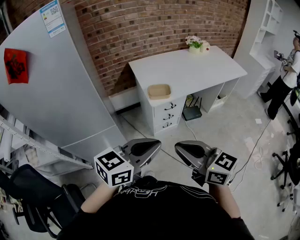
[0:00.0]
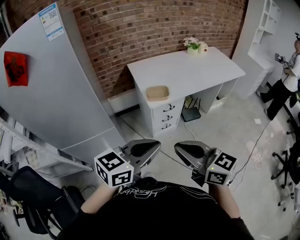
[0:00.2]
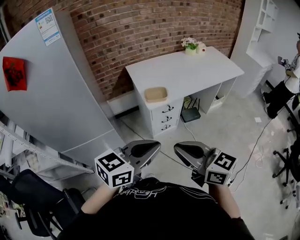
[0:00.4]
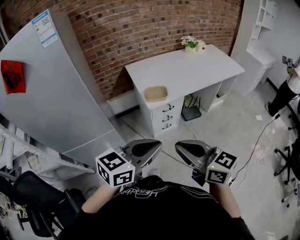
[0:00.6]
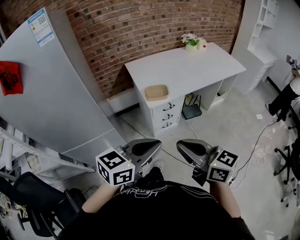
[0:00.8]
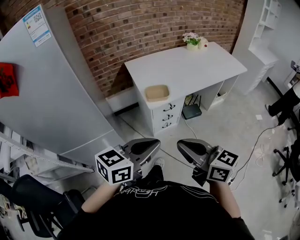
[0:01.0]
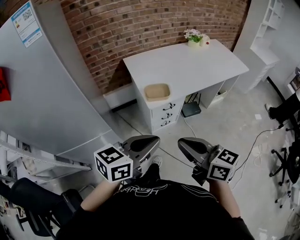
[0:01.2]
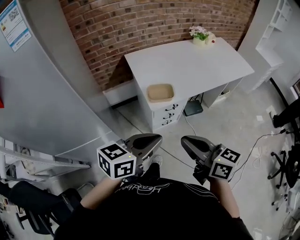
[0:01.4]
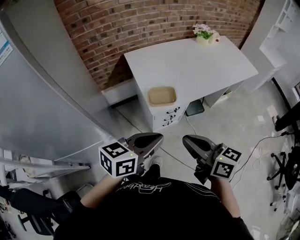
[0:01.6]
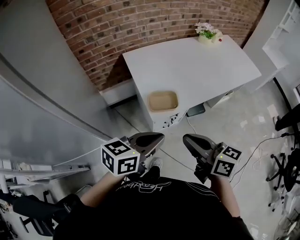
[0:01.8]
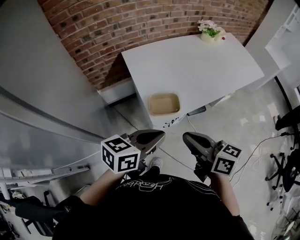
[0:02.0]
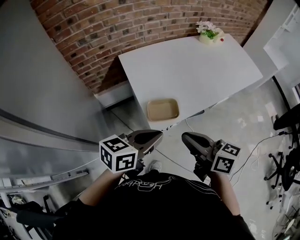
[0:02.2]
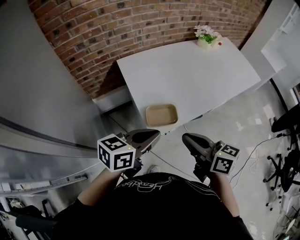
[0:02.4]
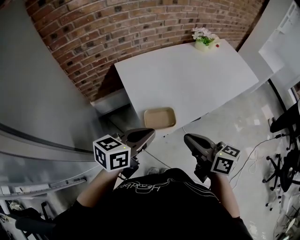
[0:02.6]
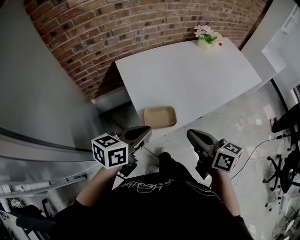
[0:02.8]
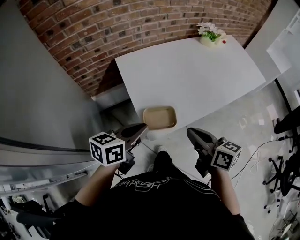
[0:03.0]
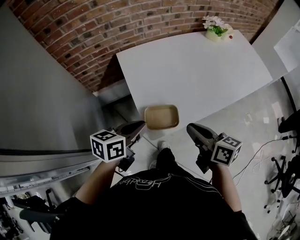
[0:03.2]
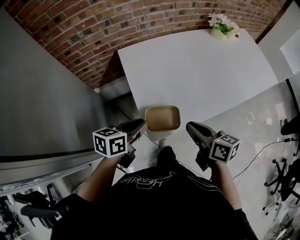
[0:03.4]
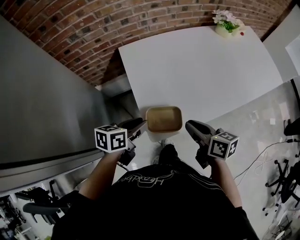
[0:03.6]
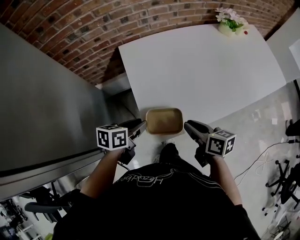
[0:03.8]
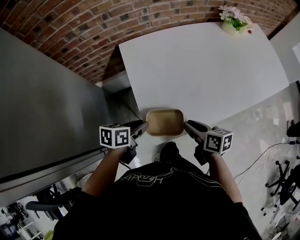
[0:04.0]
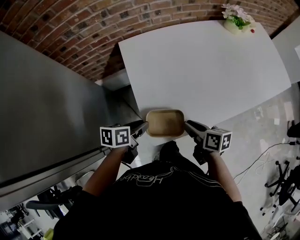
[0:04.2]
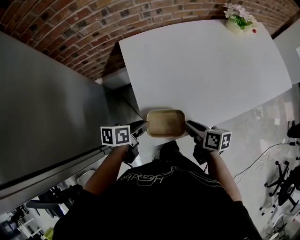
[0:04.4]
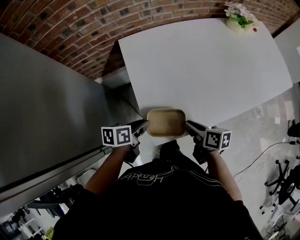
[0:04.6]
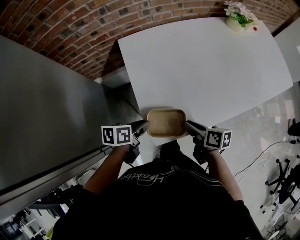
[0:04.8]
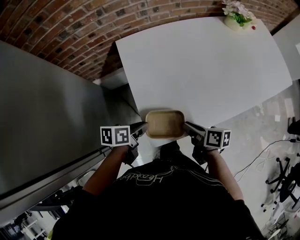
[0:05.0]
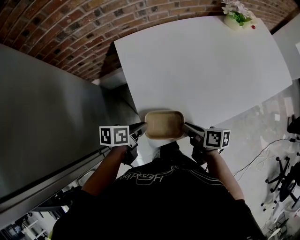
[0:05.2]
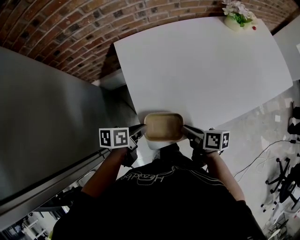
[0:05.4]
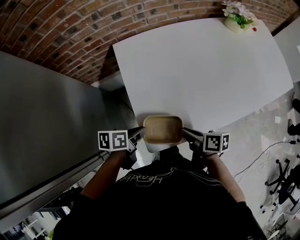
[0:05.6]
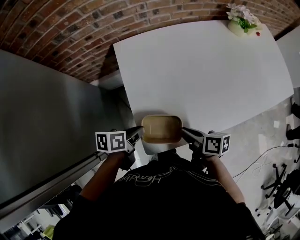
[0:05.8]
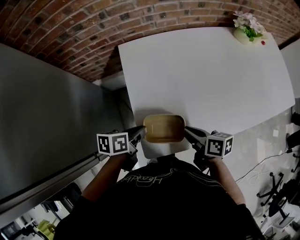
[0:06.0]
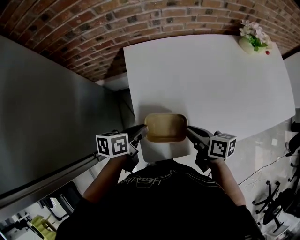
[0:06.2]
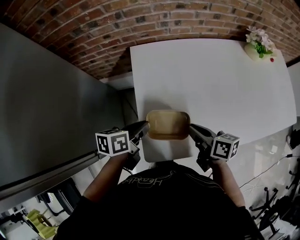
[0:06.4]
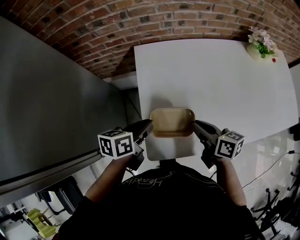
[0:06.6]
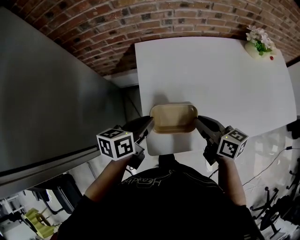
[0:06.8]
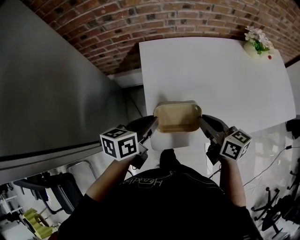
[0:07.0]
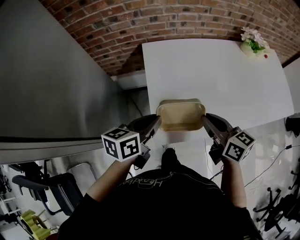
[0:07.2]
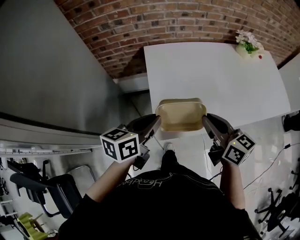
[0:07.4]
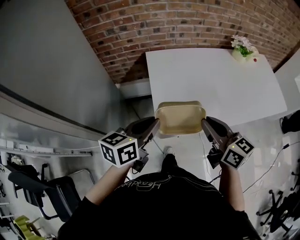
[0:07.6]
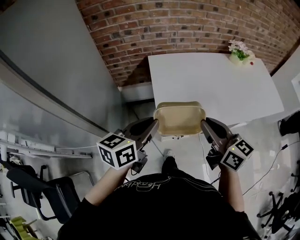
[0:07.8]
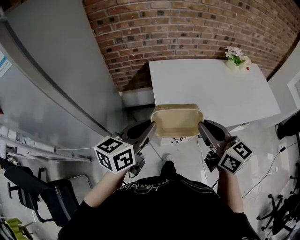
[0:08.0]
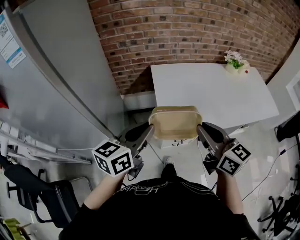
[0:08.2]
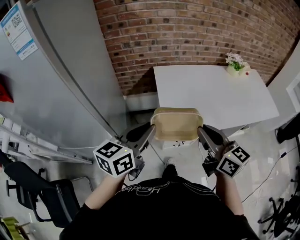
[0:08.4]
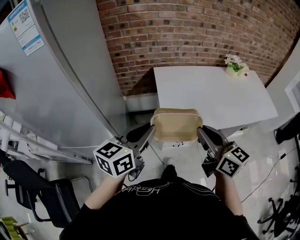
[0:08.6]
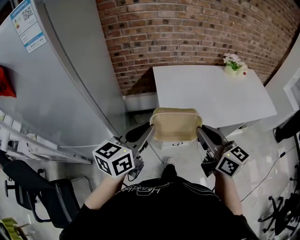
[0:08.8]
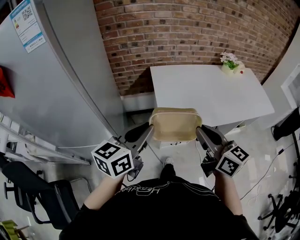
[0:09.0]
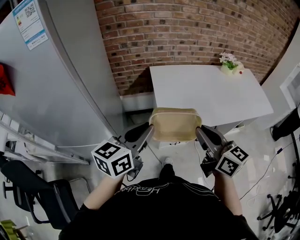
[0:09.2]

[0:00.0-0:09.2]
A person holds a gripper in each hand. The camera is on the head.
0.0 to 1.6 s: Both grippers move forward, roughly 20 cm.
1.6 to 3.0 s: The grippers both shift forward by about 20 cm.
3.0 to 4.6 s: The right gripper moves downward and forward, roughly 20 cm, and rotates approximately 30 degrees. Meanwhile the left gripper is displaced downward by about 20 cm, turns by approximately 30 degrees, and opens its fingers.
4.6 to 6.2 s: Both grippers travel together forward, approximately 5 cm.
6.2 to 7.6 s: The two grippers go some 20 cm upward and backward. The left gripper changes its angle by roughly 30 degrees; the right gripper turns by roughly 40 degrees.
7.6 to 9.2 s: Both grippers move backward, upward and to the left, roughly 15 cm.

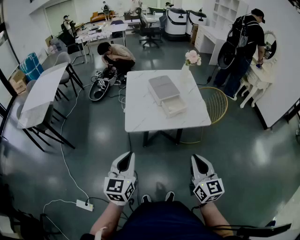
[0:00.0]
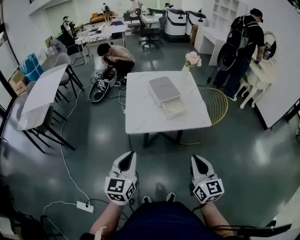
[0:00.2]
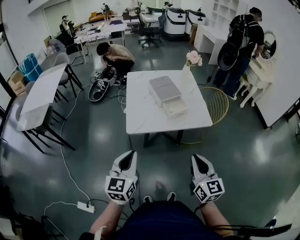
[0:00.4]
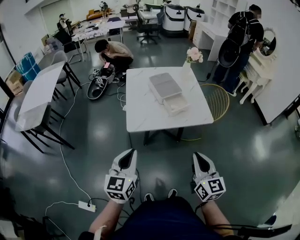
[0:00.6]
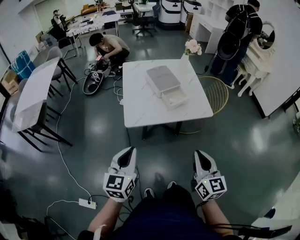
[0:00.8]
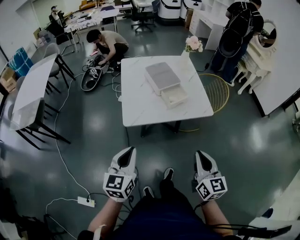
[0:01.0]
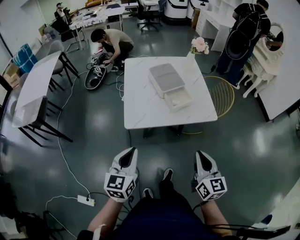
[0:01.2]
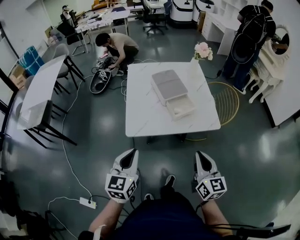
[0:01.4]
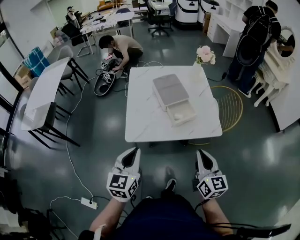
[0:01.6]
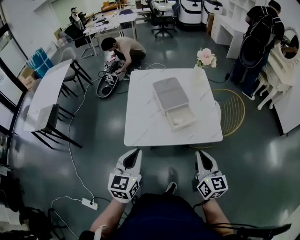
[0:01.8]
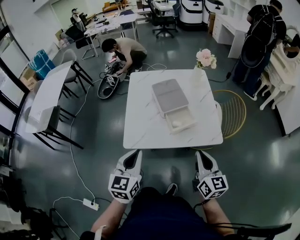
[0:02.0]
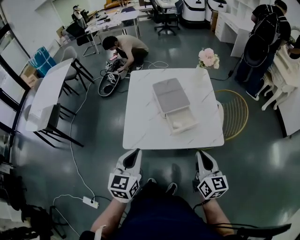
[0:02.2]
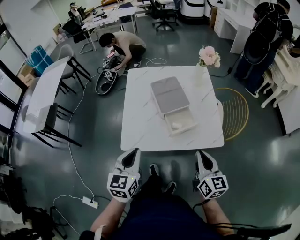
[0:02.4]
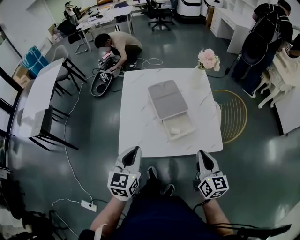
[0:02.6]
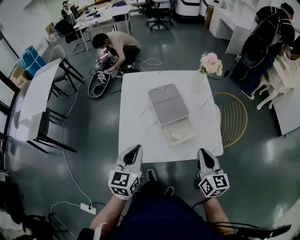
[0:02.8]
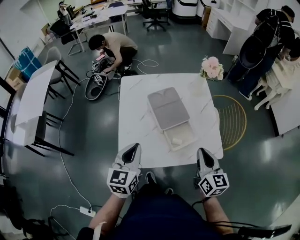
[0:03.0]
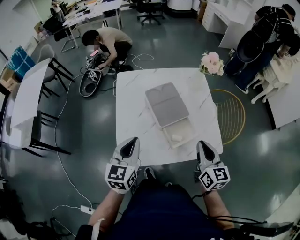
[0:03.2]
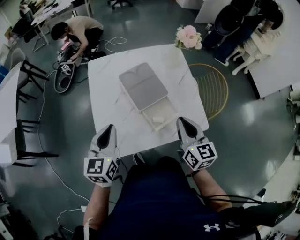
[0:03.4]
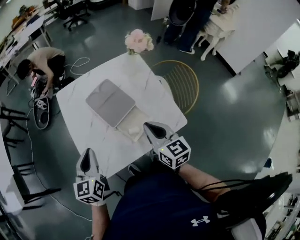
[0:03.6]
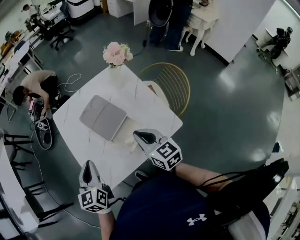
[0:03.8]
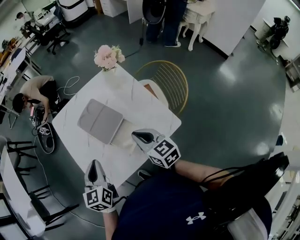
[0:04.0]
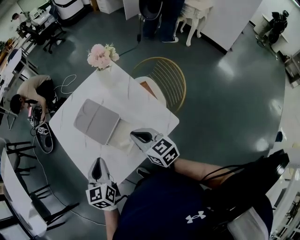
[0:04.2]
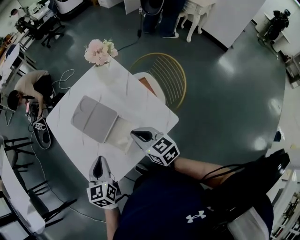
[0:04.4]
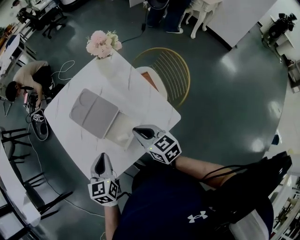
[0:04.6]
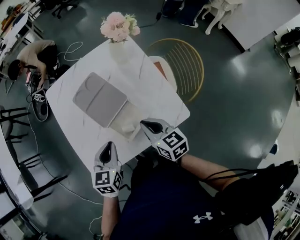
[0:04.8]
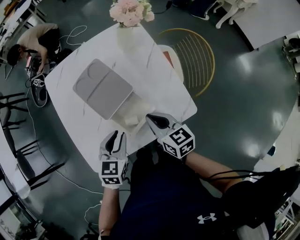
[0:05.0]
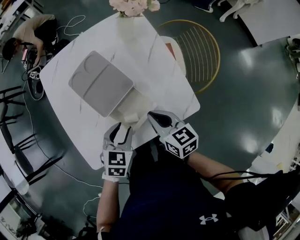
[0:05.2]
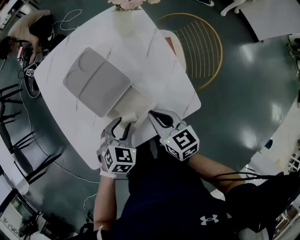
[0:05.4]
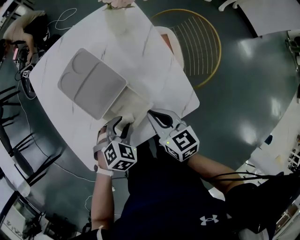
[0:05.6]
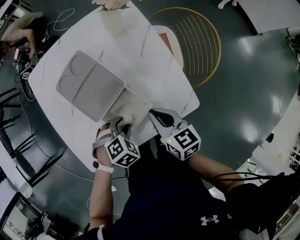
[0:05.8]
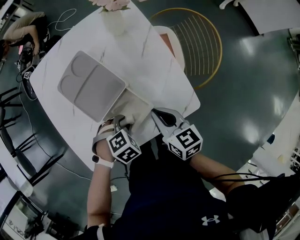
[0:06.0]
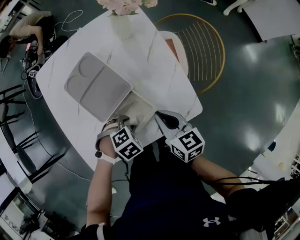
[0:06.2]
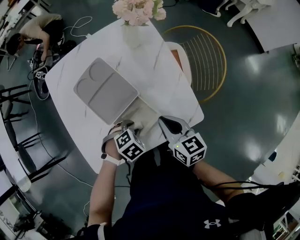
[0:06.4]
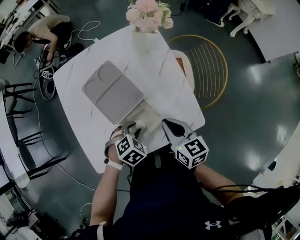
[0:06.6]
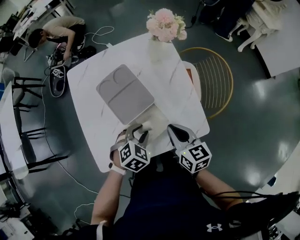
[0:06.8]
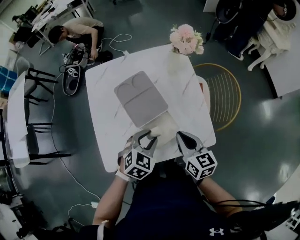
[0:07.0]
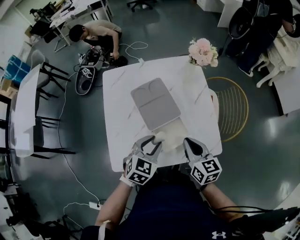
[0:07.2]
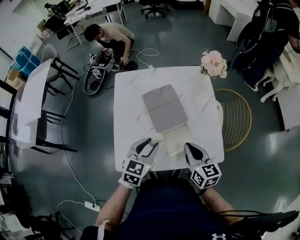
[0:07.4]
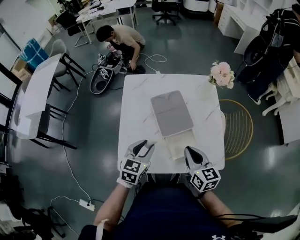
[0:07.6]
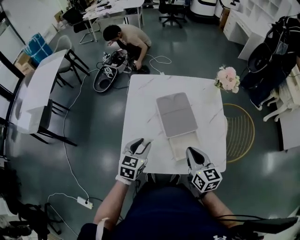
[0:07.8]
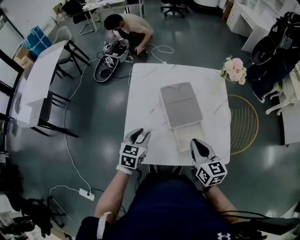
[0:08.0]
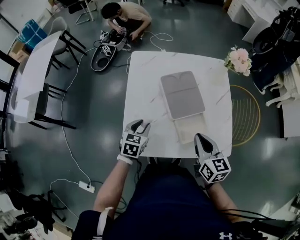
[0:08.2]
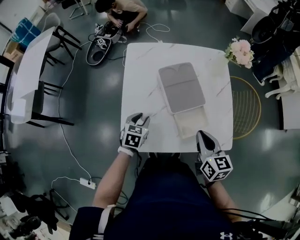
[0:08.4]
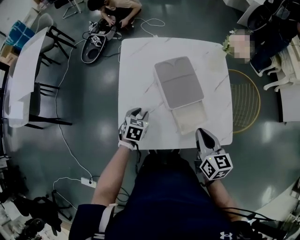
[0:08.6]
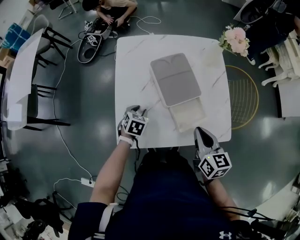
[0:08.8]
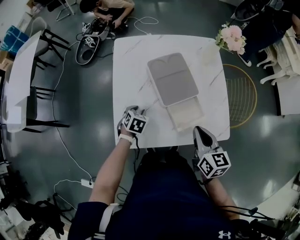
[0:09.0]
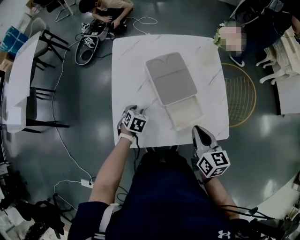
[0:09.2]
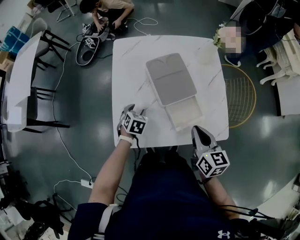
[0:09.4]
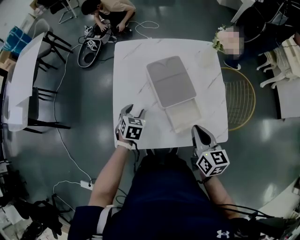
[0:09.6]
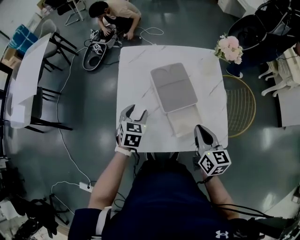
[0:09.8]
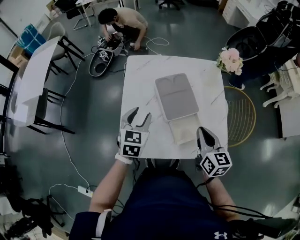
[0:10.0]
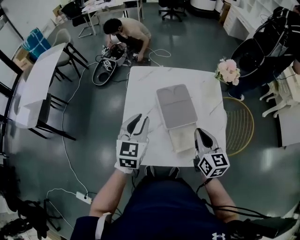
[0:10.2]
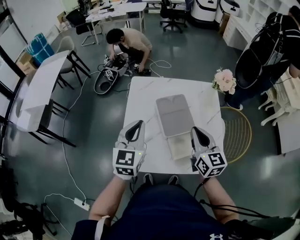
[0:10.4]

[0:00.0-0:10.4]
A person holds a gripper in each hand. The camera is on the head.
0.0 to 1.4 s: Both grippers move forward, about 10 cm.
1.4 to 3.0 s: The two grippers go about 25 cm forward.
3.0 to 4.4 s: The right gripper moves forward and downward, about 10 cm. The left gripper travels to the right, forward and downward by approximately 15 cm.
4.4 to 6.0 s: The left gripper heads downward, covering some 20 cm, tips its fingers downward by roughly 50 degrees, and opens its fingers. Meanwhile the right gripper shifts roughly 10 cm downward.
6.0 to 7.4 s: The left gripper is displaced upward by approximately 20 cm, and points its fingers about 50 degrees further upward, while the right gripper goes approximately 10 cm upward.
7.4 to 9.0 s: The left gripper is displaced downward and to the left by some 25 cm, and tilts its fingers some 30 degrees downward.
9.0 to 10.4 s: The left gripper goes approximately 35 cm upward, tips its fingers upward by approximately 50 degrees, and closes its fingers, while the right gripper travels upward and forward by approximately 15 cm, and changes its angle by about 20 degrees.

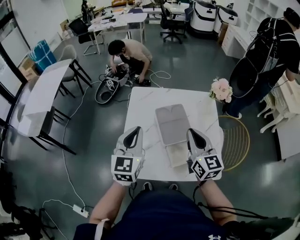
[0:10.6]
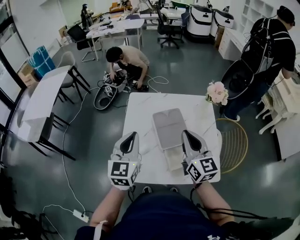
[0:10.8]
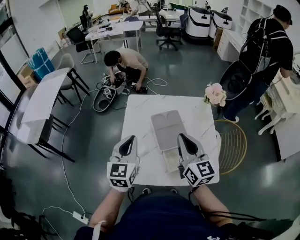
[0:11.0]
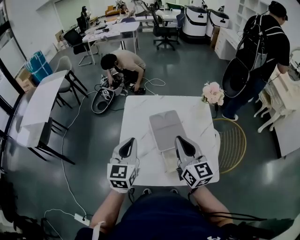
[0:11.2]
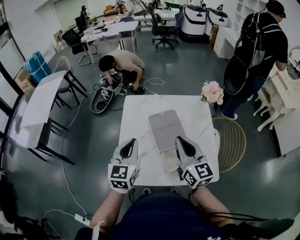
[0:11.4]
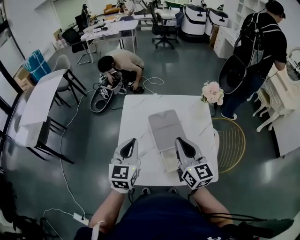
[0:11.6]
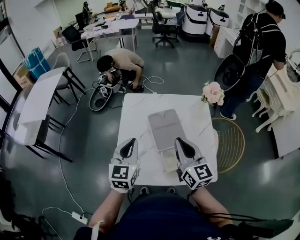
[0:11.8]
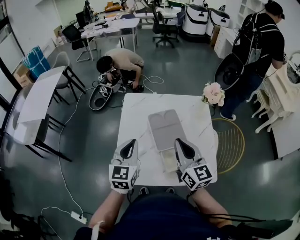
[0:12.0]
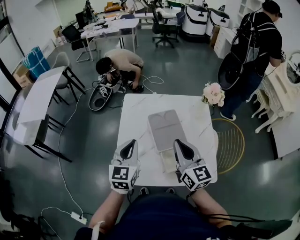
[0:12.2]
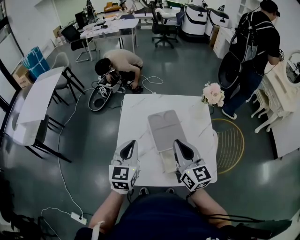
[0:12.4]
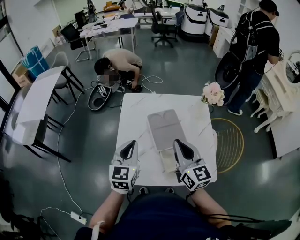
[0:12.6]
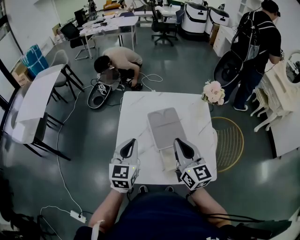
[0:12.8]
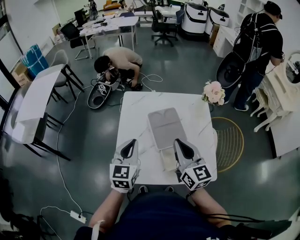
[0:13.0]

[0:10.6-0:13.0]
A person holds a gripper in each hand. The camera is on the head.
10.6 to 13.0 s: The grippers move only a little.

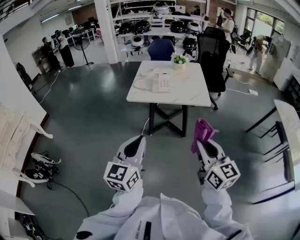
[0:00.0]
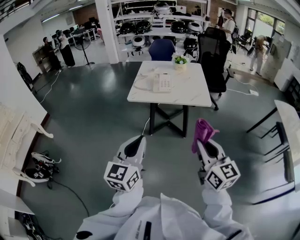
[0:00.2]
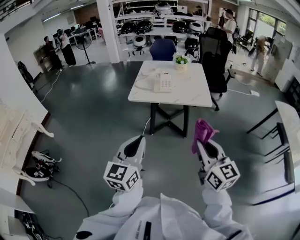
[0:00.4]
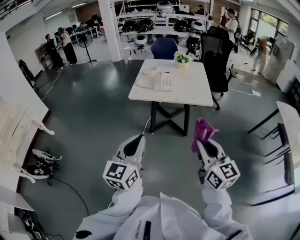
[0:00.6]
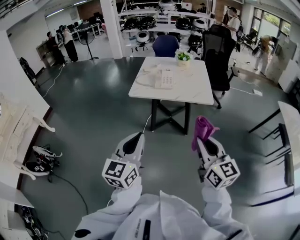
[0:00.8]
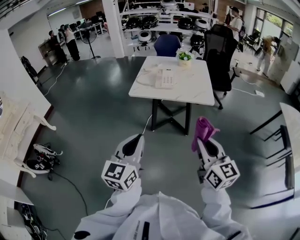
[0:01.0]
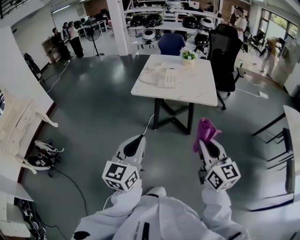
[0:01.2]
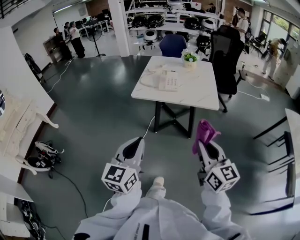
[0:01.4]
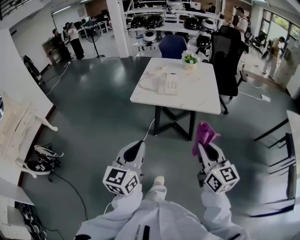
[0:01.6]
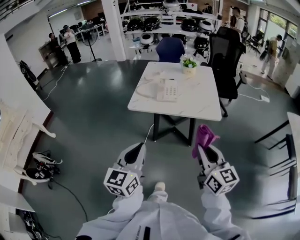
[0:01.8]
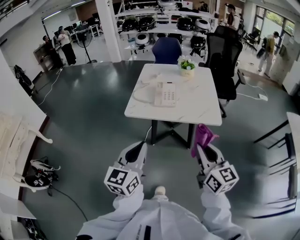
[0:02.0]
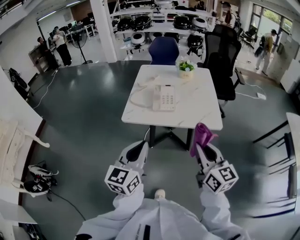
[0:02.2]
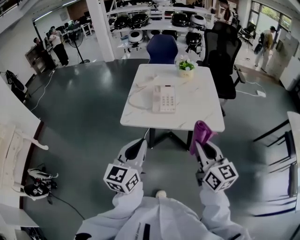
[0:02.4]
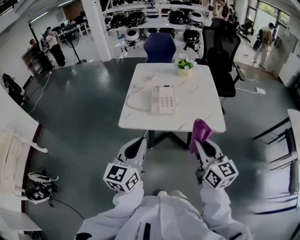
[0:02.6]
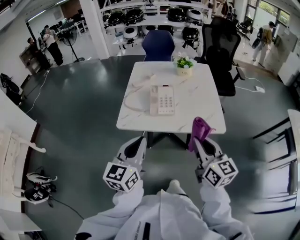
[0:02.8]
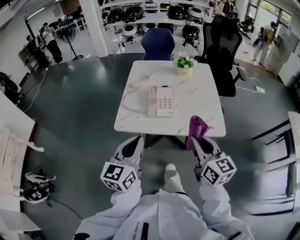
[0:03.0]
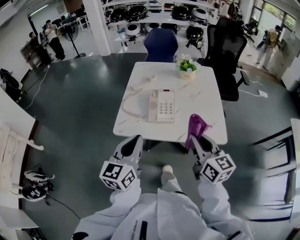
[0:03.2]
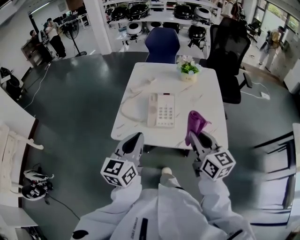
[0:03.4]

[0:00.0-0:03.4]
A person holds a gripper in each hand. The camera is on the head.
0.0 to 1.6 s: Both grippers move forward, about 10 cm.
1.6 to 3.4 s: The two grippers go some 40 cm forward.
